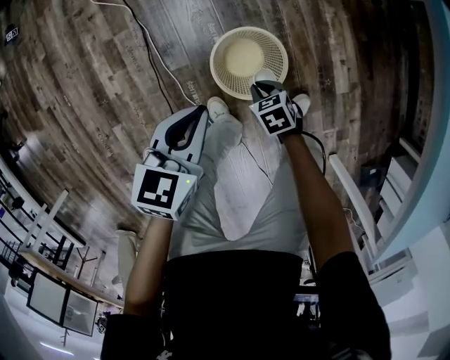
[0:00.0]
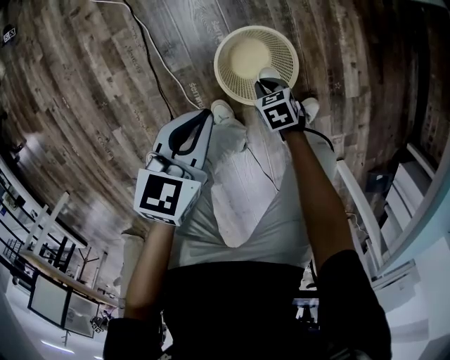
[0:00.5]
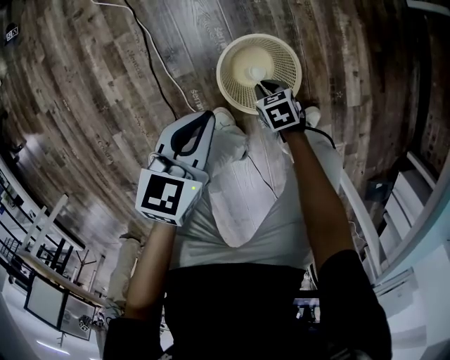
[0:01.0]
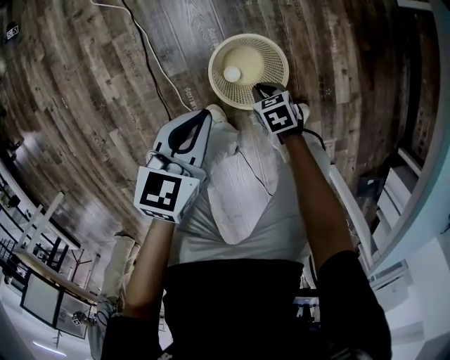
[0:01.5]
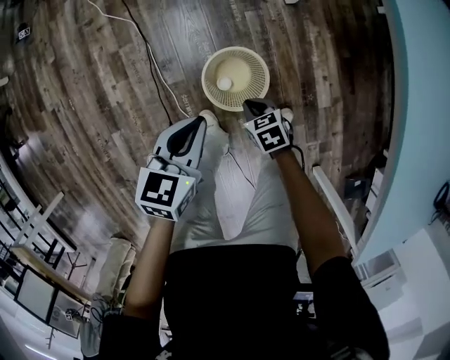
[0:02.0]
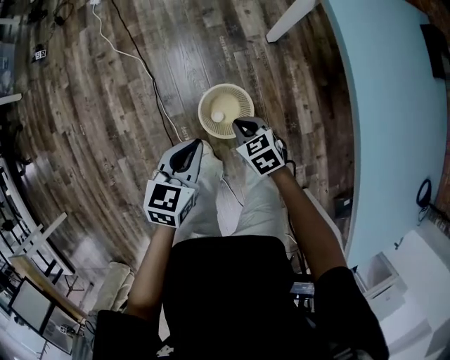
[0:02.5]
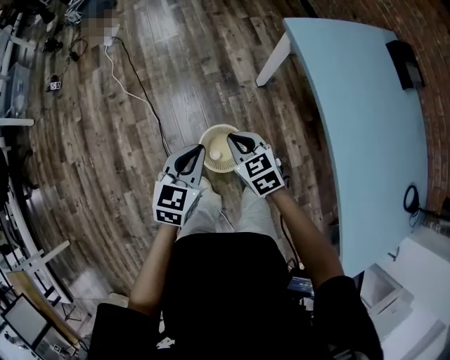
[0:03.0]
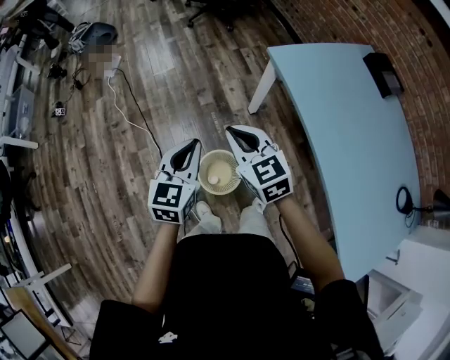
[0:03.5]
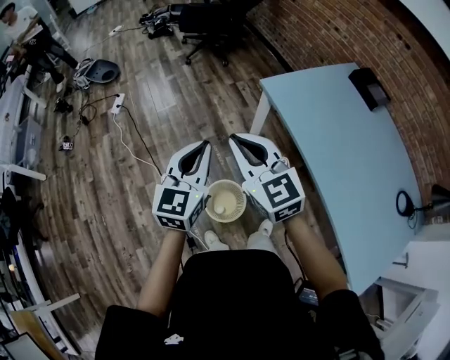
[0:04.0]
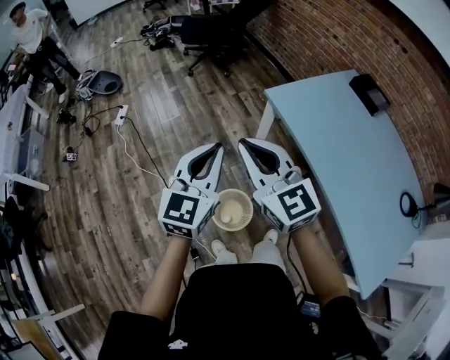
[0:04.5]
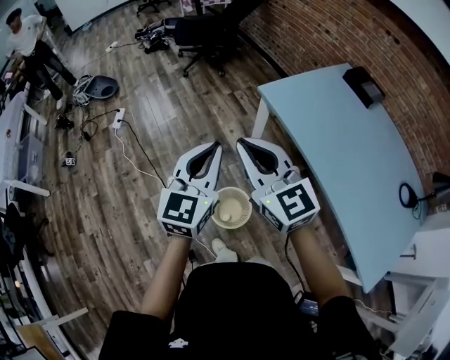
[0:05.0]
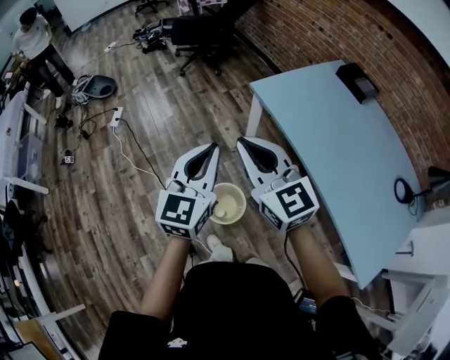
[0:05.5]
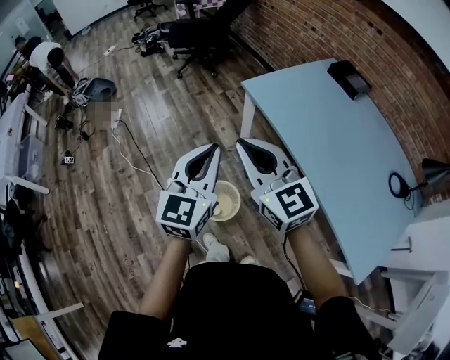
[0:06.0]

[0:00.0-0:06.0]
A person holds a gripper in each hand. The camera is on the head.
0:00.0 to 0:02.0: The two grippers go about 10 cm upward.
0:02.0 to 0:04.0: The right gripper is displaced upward by roughly 60 cm, and points its fingers some 50 degrees further upward, while the left gripper shifts some 40 cm upward, and points its fingers some 30 degrees further upward.
0:04.0 to 0:06.0: Both grippers travel together backward, to the right and upward, about 15 cm.

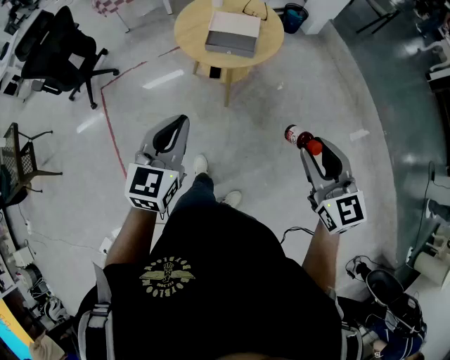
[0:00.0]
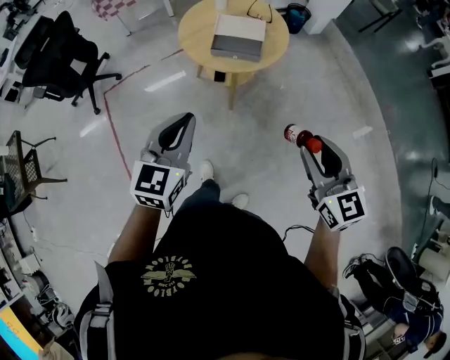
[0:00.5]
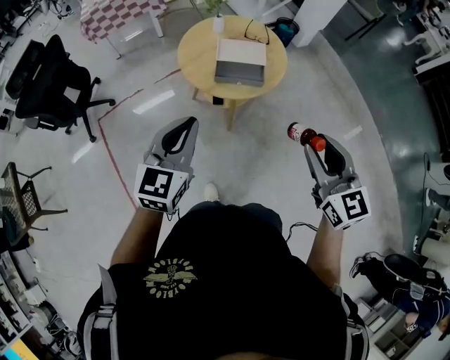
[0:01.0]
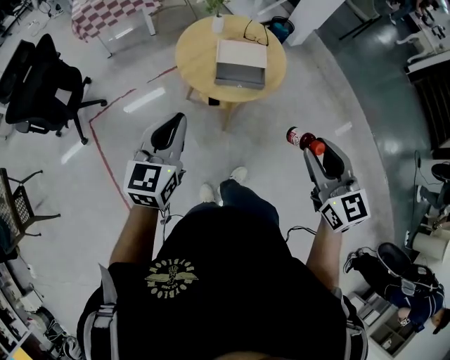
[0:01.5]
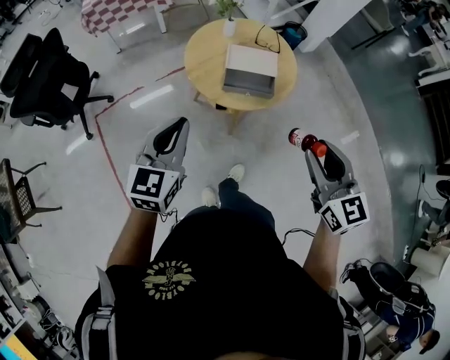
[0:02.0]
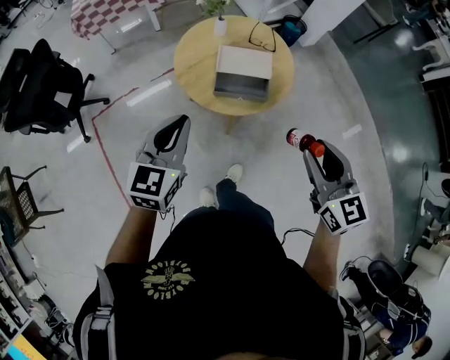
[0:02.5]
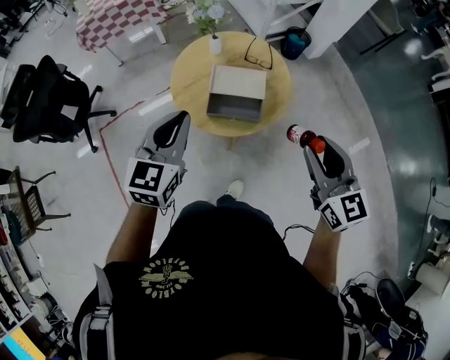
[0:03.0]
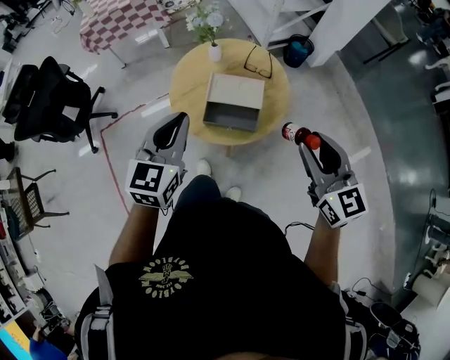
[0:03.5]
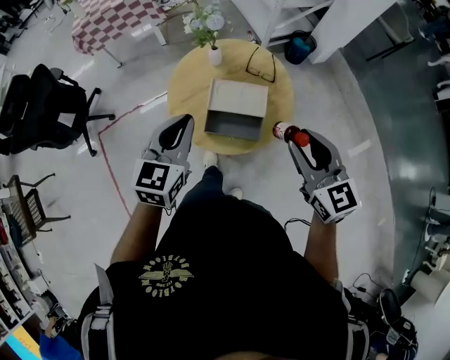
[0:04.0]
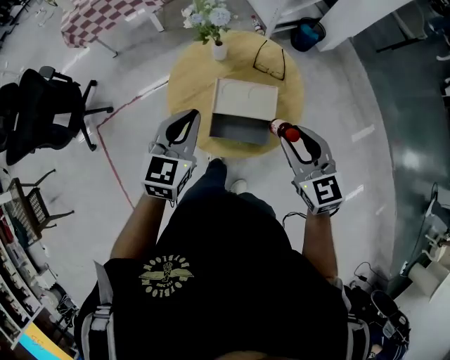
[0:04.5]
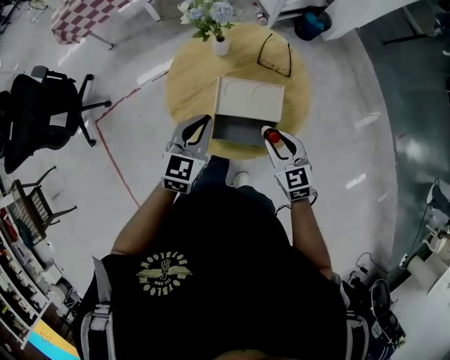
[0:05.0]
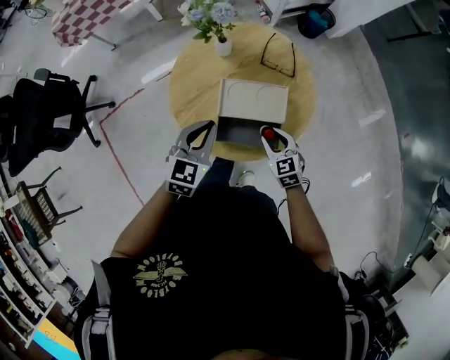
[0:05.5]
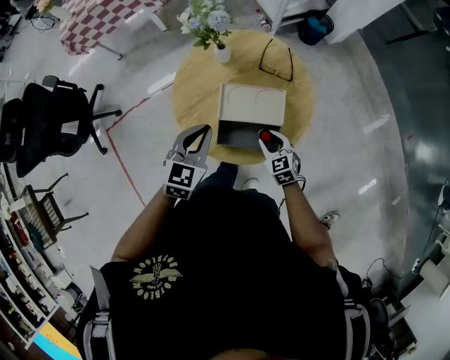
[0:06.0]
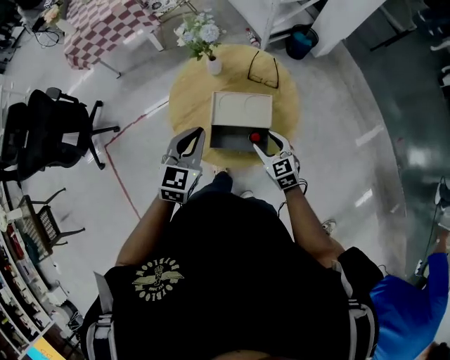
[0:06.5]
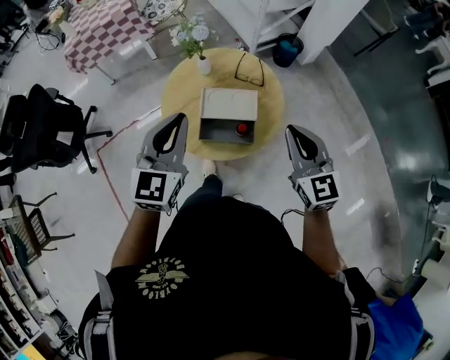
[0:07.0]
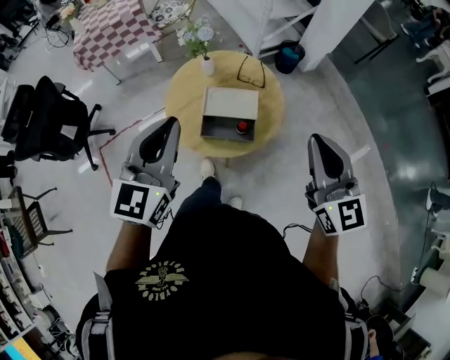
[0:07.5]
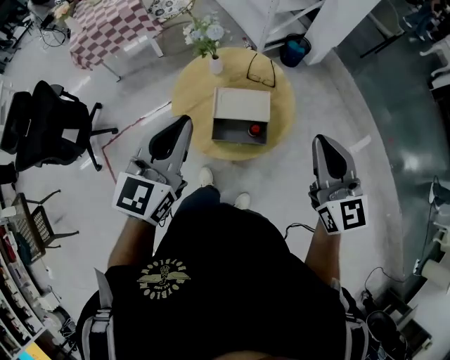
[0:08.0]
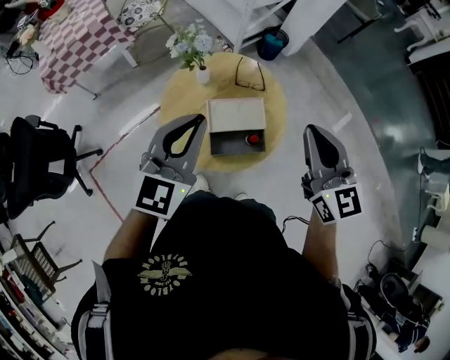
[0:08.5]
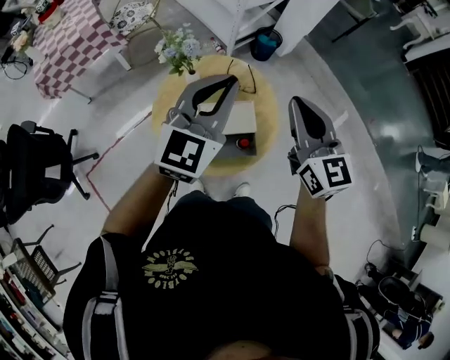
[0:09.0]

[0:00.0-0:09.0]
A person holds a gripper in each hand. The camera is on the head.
0:00.0 to 0:02.0: Both grippers travel together forward and to the left, approximately 25 cm.
0:02.0 to 0:04.5: Both grippers travel together forward, some 35 cm.
0:04.5 to 0:07.0: The right gripper is displaced backward by roughly 5 cm, reaches some 30 cm downward, then returns, and closes up; the left gripper heads upward and backward, covering approximately 15 cm.
0:07.0 to 0:09.0: The right gripper goes approximately 15 cm forward, upward and to the left. The left gripper shifts approximately 15 cm forward and upward, and swivels approximately 20 degrees.

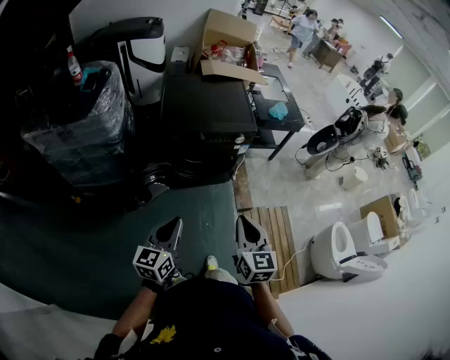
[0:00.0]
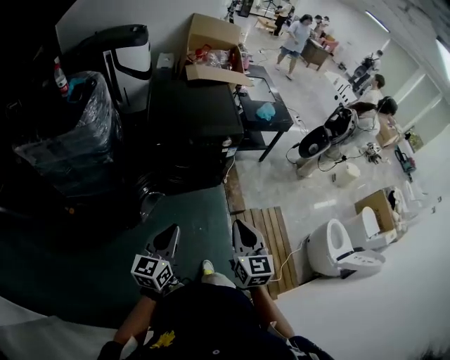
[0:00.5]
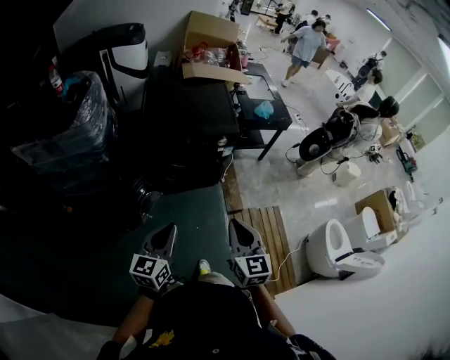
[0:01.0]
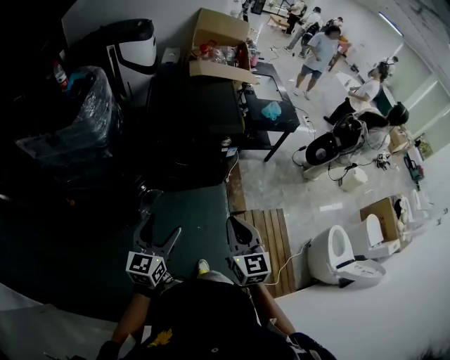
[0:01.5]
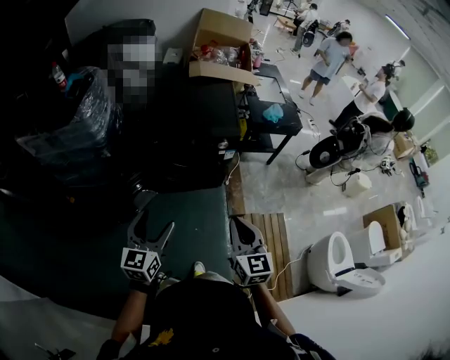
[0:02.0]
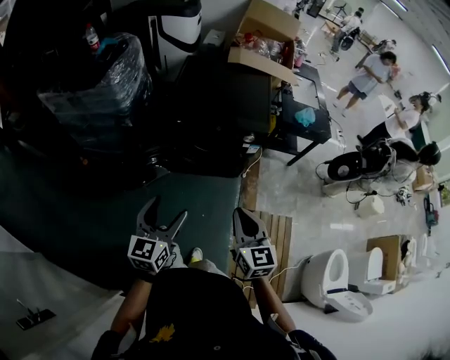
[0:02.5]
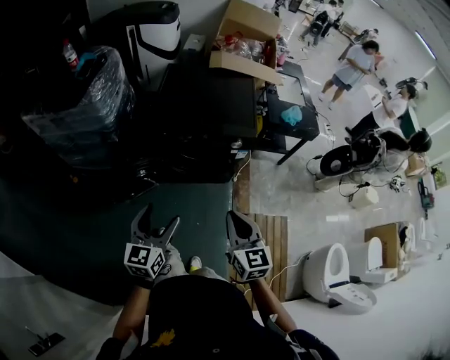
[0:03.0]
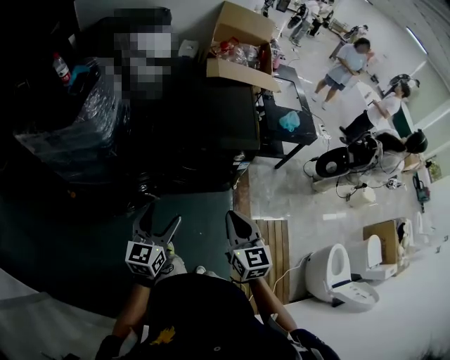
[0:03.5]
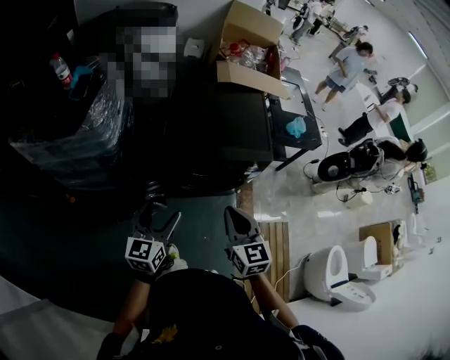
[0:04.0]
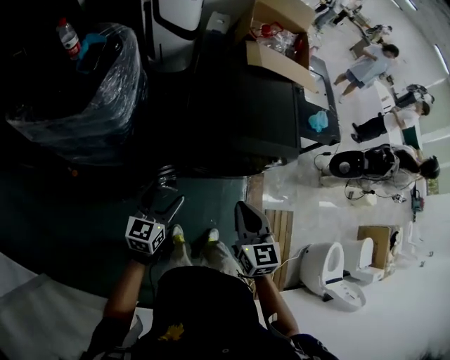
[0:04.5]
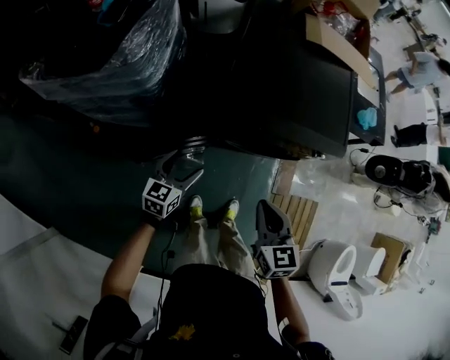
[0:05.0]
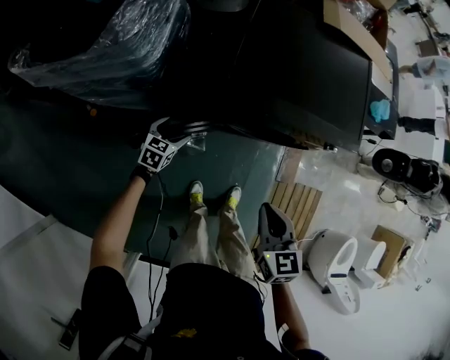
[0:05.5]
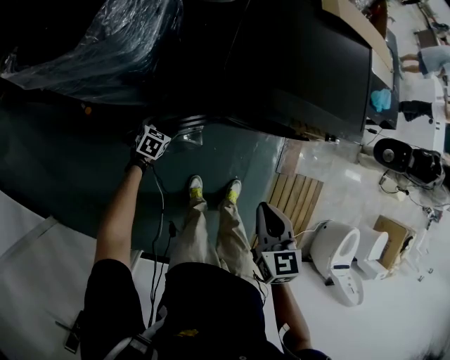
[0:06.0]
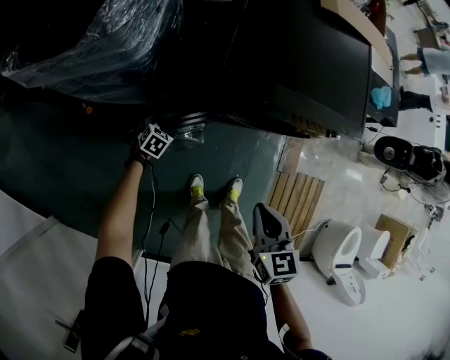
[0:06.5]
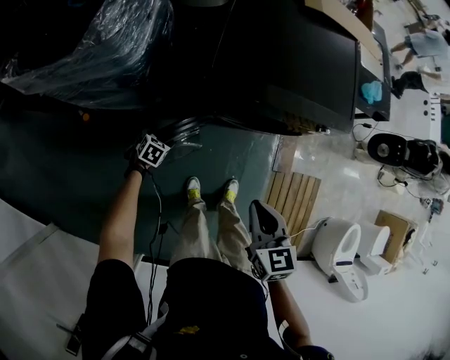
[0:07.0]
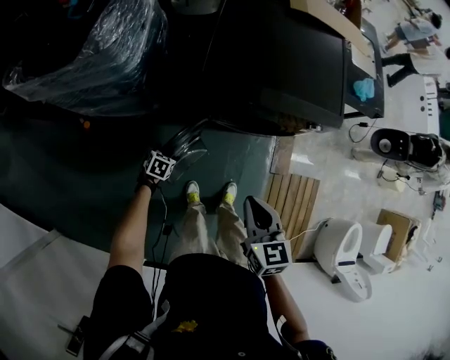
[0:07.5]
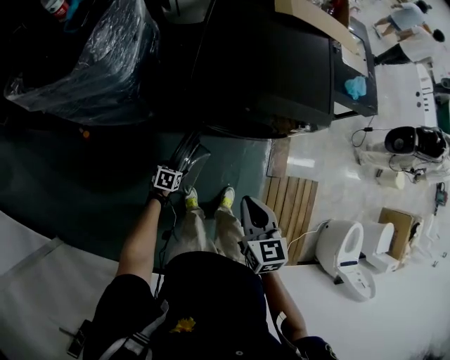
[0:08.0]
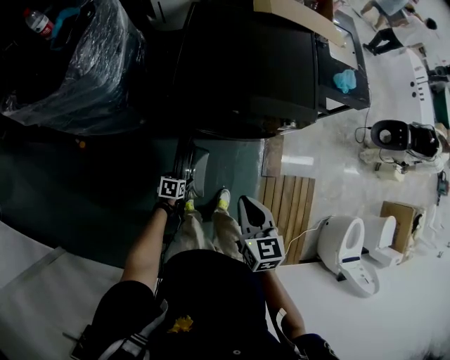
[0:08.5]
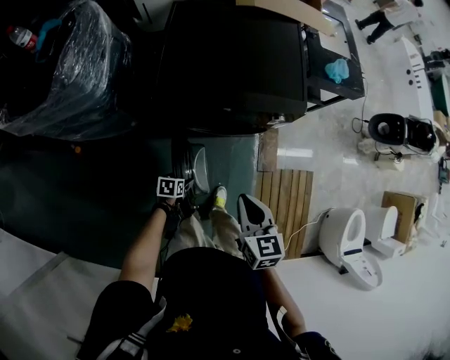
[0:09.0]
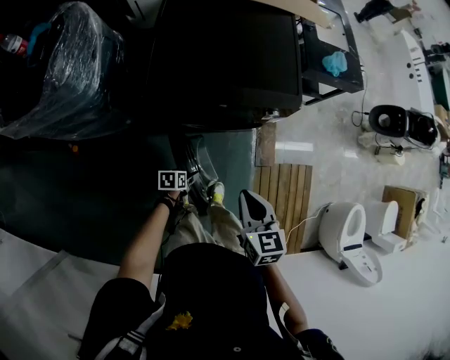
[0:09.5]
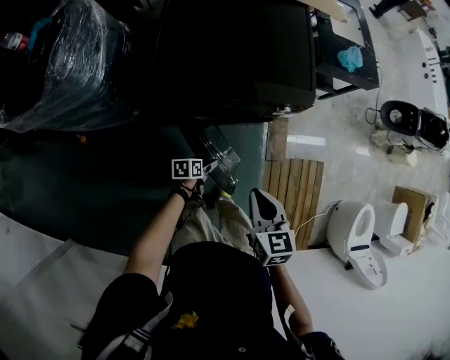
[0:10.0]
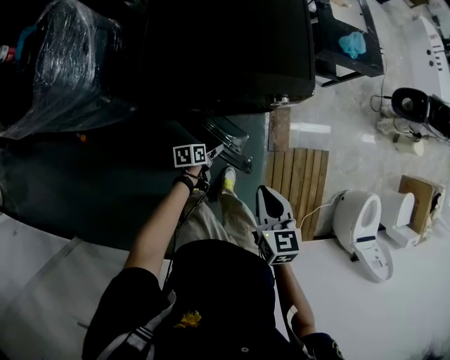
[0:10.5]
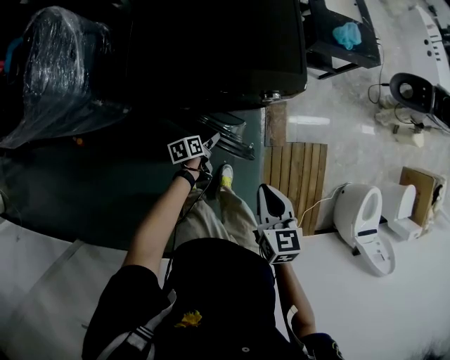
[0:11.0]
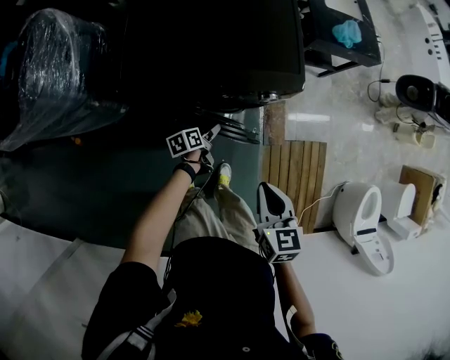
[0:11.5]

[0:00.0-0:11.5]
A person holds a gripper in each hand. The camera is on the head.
0:00.0 to 0:02.0: Both grippers travel together to the right and forward, some 10 cm. The left gripper opens.
0:02.0 to 0:04.0: Both grippers travel together forward and to the left, about 25 cm.
0:04.0 to 0:06.0: The left gripper heads downward and to the left, covering approximately 50 cm, and points its fingers approximately 50 degrees further downward. The right gripper heads downward, covering roughly 20 cm, and swivels about 20 degrees.
0:06.0 to 0:07.5: The left gripper heads backward and to the right, covering approximately 10 cm.
0:07.5 to 0:09.5: The left gripper moves to the right, approximately 20 cm, and swivels approximately 30 degrees. The right gripper travels to the right by approximately 15 cm.
0:09.5 to 0:11.5: The right gripper moves to the right and downward, some 10 cm. The left gripper is displaced forward and to the right by some 20 cm, and turns by some 20 degrees.
